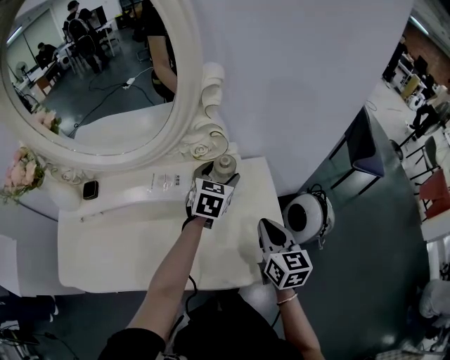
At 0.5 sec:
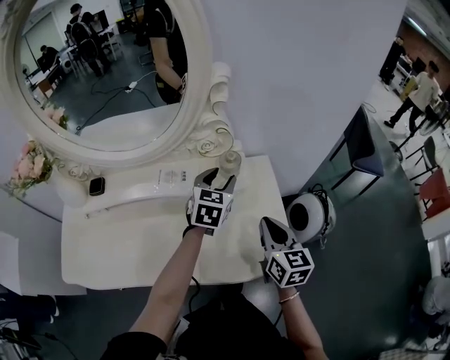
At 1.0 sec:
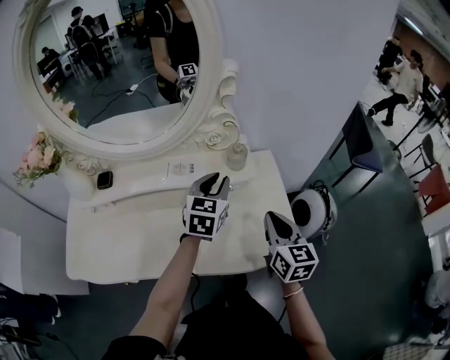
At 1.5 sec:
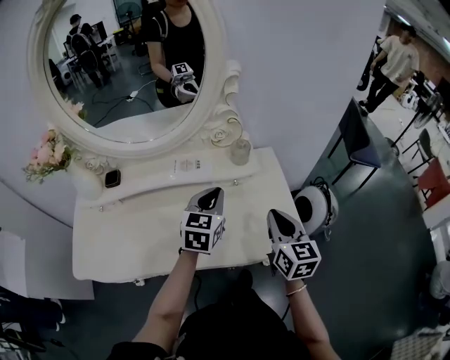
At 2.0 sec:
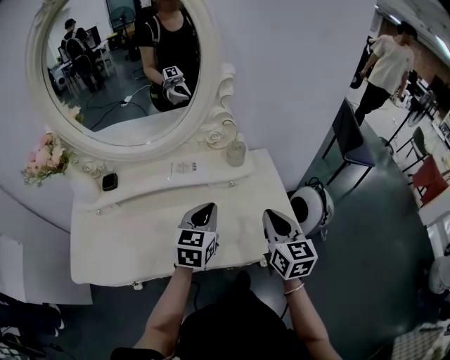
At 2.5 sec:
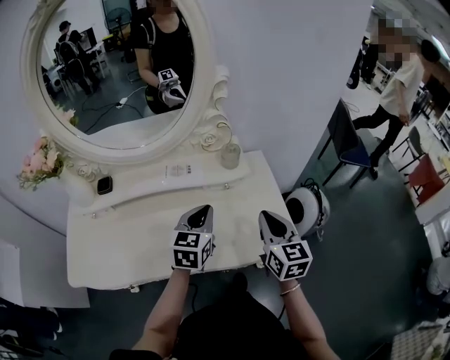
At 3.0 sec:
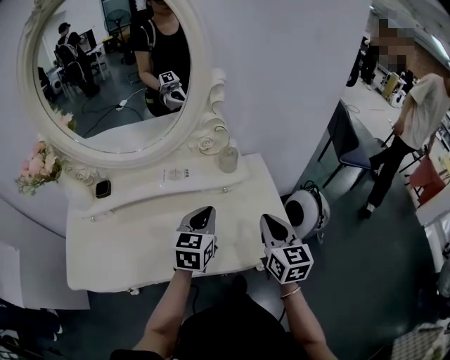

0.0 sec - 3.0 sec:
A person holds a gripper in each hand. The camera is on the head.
0.0 sec - 1.5 sec: The right gripper goes about 10 cm backward; the left gripper is displaced backward and to the left by approximately 20 cm, and closes its fingers.
1.5 sec - 3.0 sec: The grippers move only a little.

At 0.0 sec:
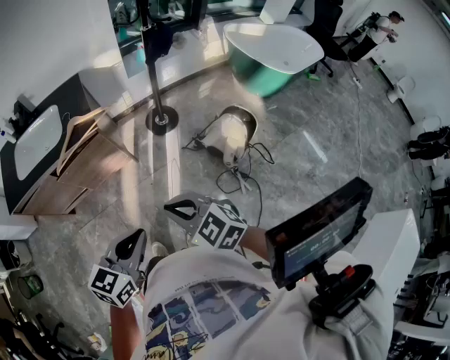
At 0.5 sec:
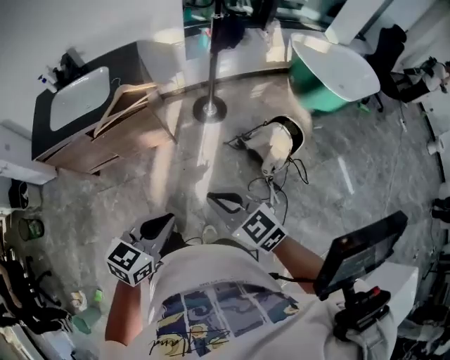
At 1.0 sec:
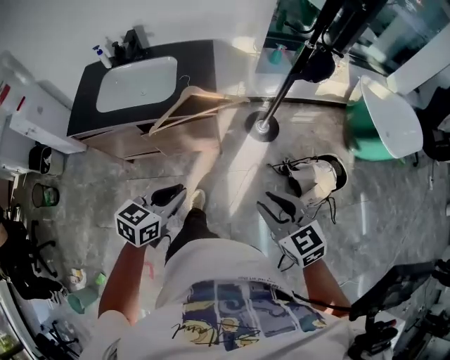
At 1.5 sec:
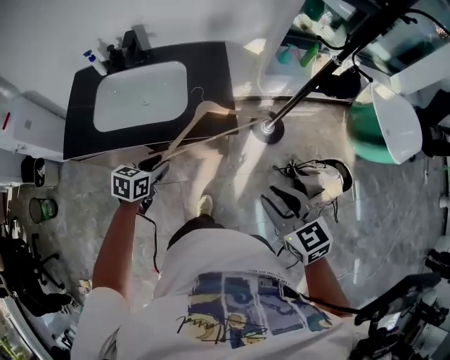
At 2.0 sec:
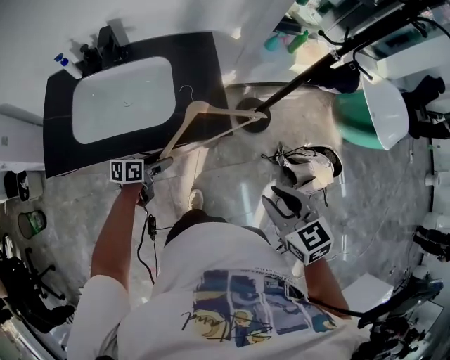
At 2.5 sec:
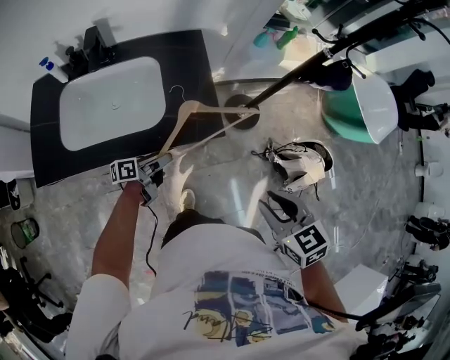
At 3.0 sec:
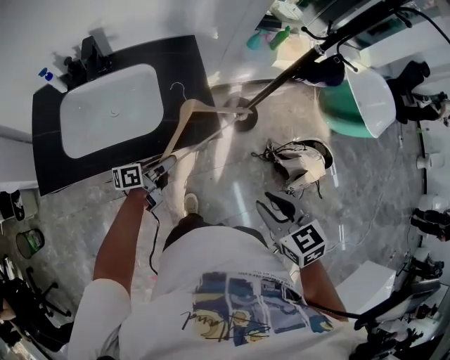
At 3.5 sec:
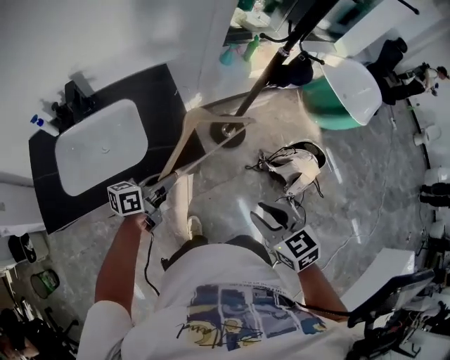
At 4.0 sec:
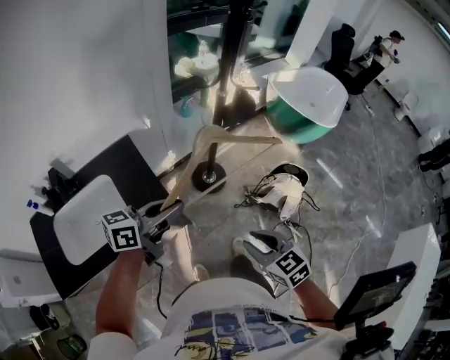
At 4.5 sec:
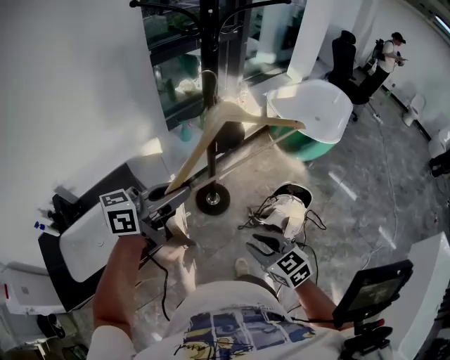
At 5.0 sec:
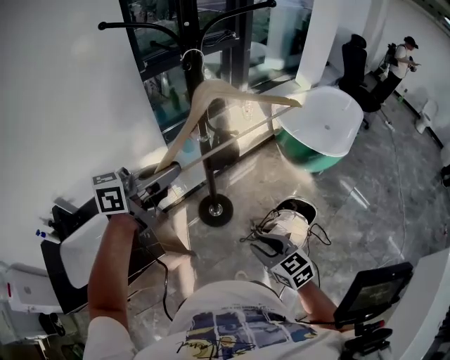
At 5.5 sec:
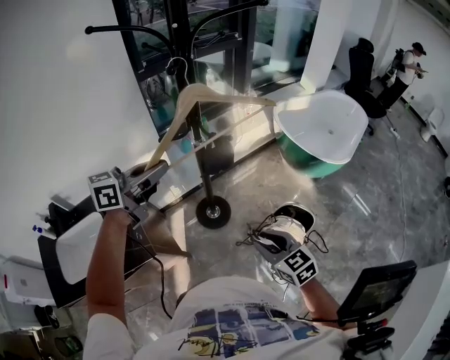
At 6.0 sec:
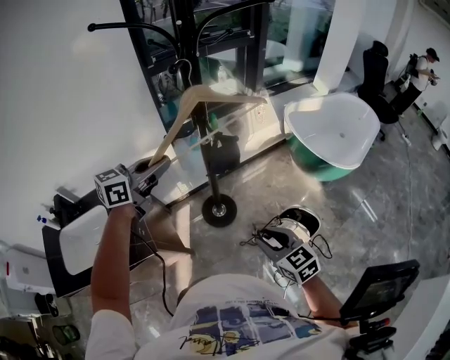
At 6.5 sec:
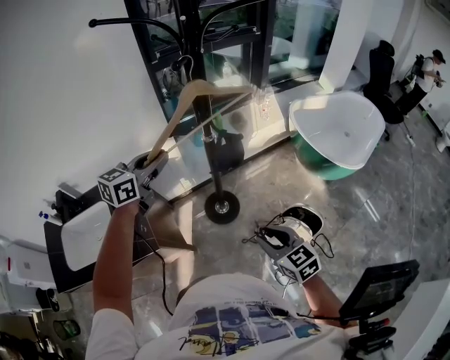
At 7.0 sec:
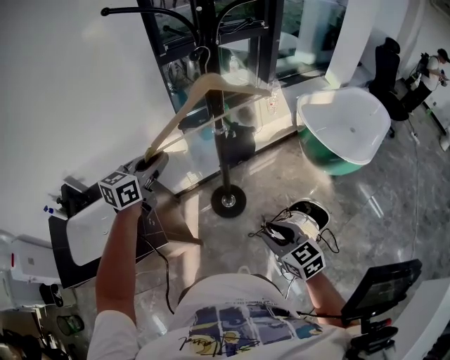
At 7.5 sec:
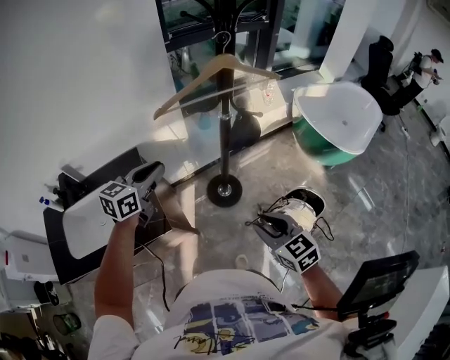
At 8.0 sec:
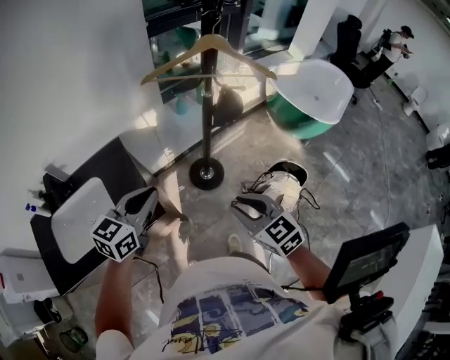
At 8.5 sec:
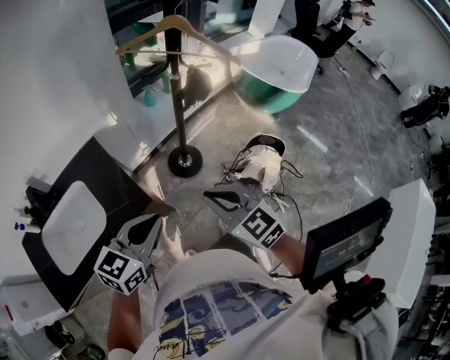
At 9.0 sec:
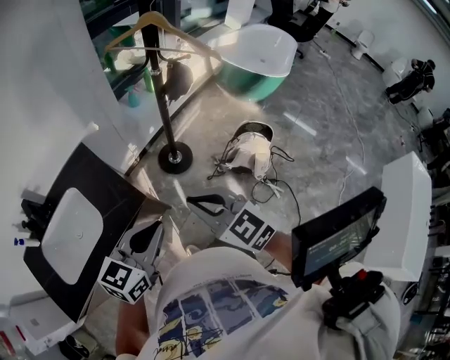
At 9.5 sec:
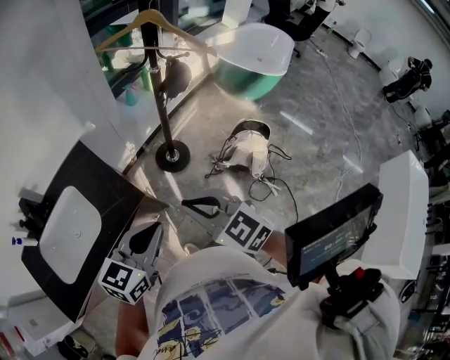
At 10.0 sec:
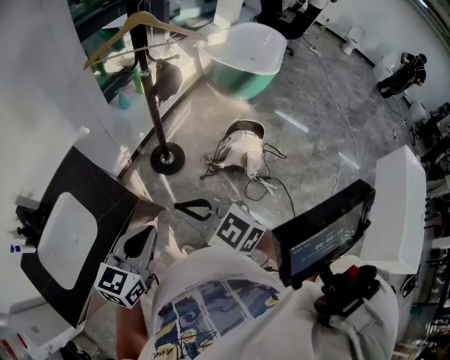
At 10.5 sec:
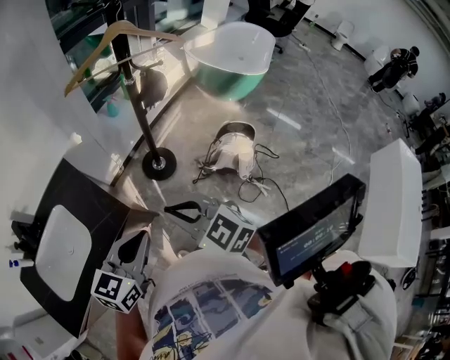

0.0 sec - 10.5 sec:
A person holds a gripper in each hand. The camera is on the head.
0.0 sec - 2.0 sec: The left gripper goes about 60 cm forward, to the left and downward, twists about 40 degrees counterclockwise, seen from behind, and opens its fingers. The right gripper goes roughly 30 cm forward and to the left, and opens up.
2.0 sec - 4.0 sec: The right gripper heads to the right, covering approximately 10 cm, and changes its angle by approximately 20 degrees. Meanwhile the left gripper travels upward and to the right by some 40 cm, changes its angle by about 50 degrees, and closes its fingers.
4.0 sec - 6.5 sec: The left gripper moves forward, some 30 cm, and rotates some 40 degrees, while the right gripper goes roughly 30 cm forward and to the right.
6.5 sec - 8.5 sec: The right gripper goes some 25 cm to the left and backward, and closes up. The left gripper travels backward by some 35 cm.
8.5 sec - 10.5 sec: The right gripper moves roughly 5 cm.

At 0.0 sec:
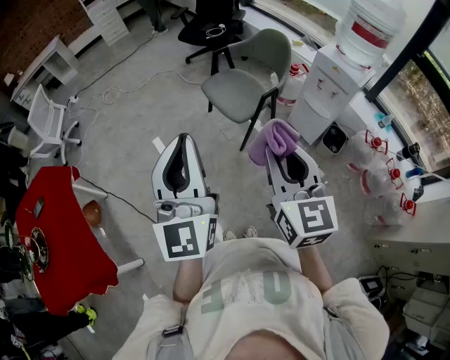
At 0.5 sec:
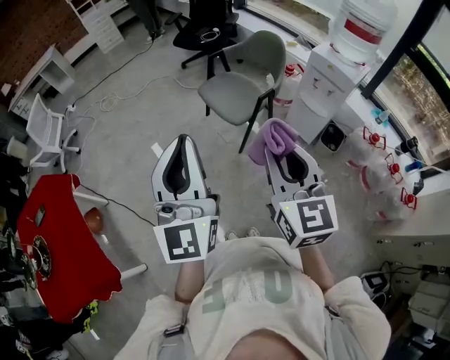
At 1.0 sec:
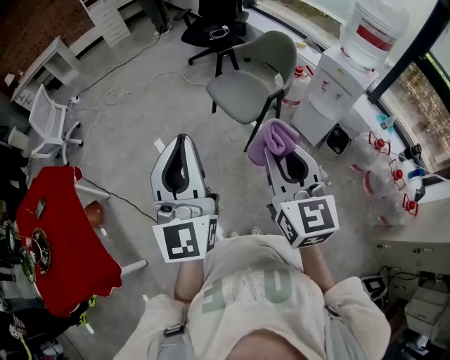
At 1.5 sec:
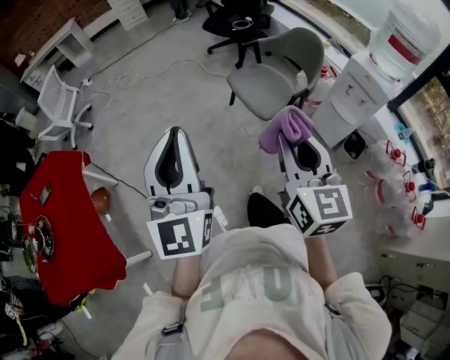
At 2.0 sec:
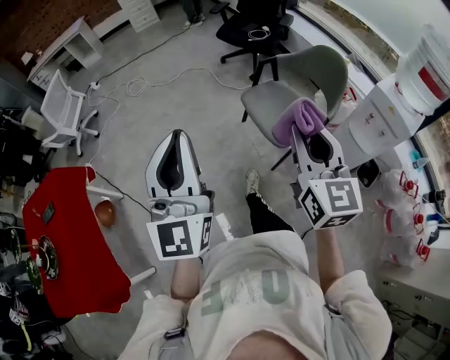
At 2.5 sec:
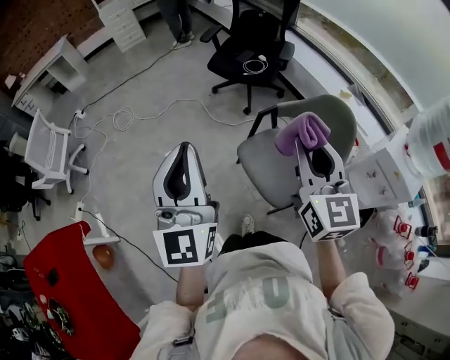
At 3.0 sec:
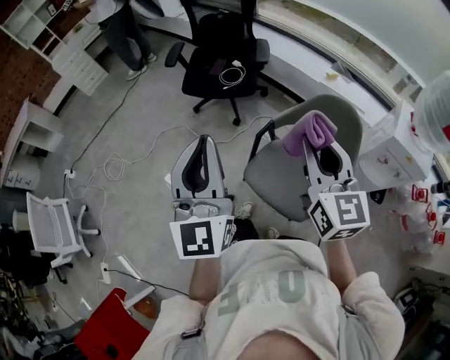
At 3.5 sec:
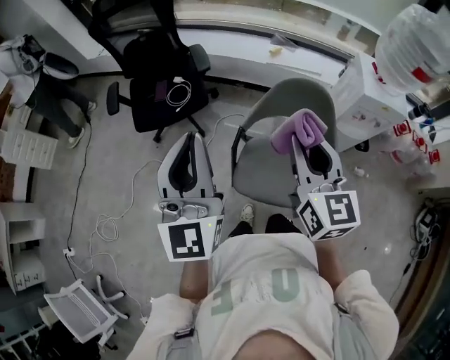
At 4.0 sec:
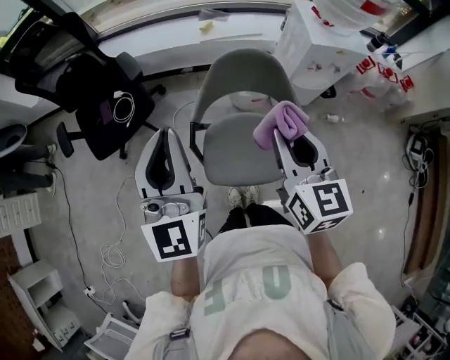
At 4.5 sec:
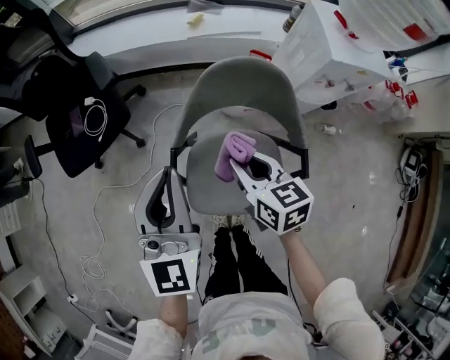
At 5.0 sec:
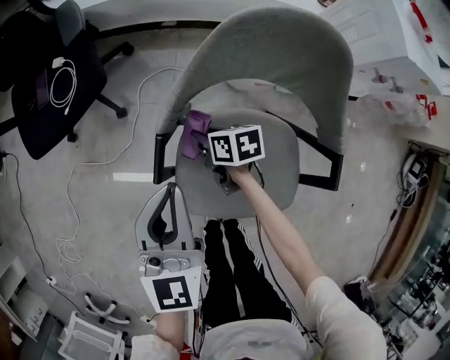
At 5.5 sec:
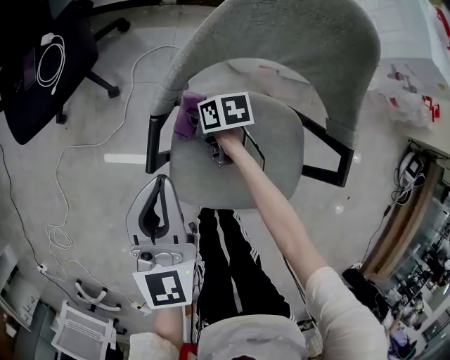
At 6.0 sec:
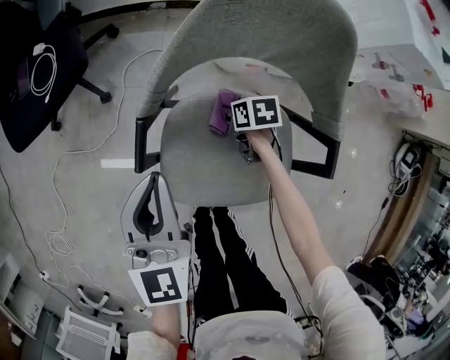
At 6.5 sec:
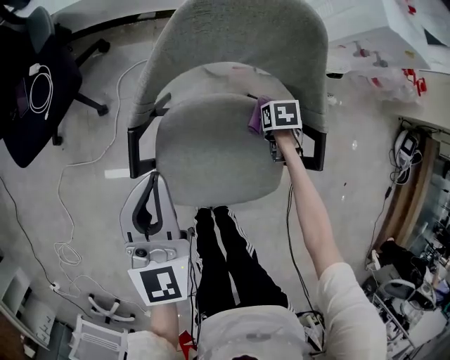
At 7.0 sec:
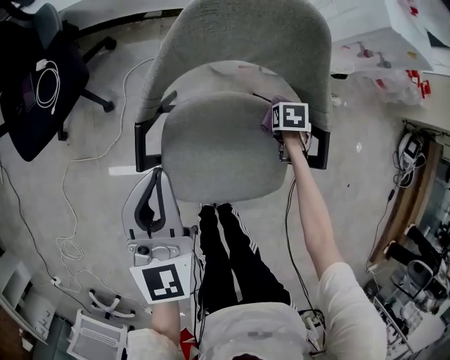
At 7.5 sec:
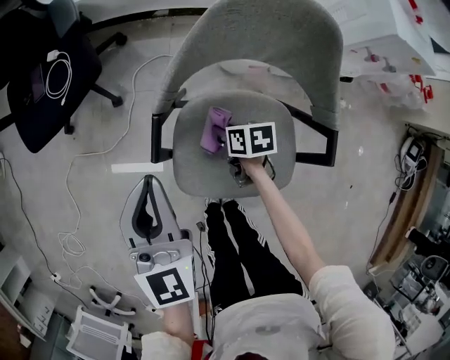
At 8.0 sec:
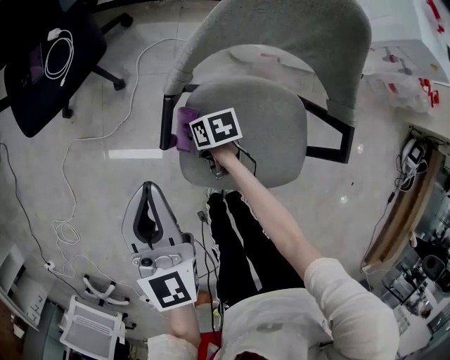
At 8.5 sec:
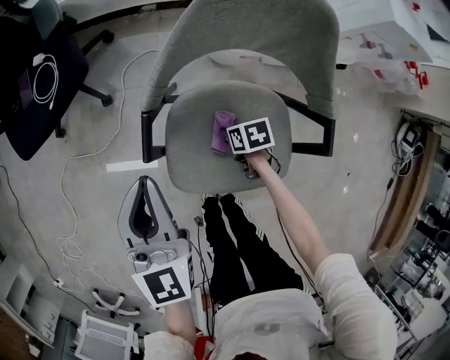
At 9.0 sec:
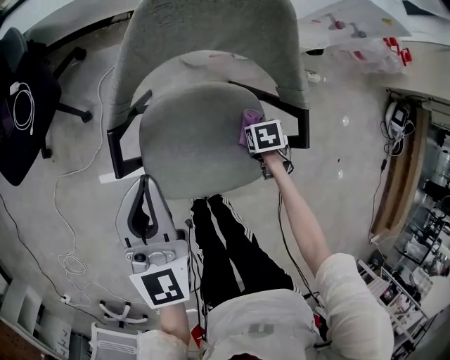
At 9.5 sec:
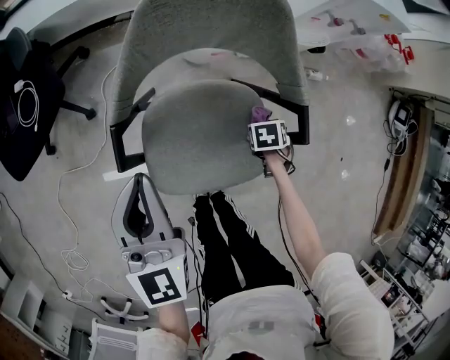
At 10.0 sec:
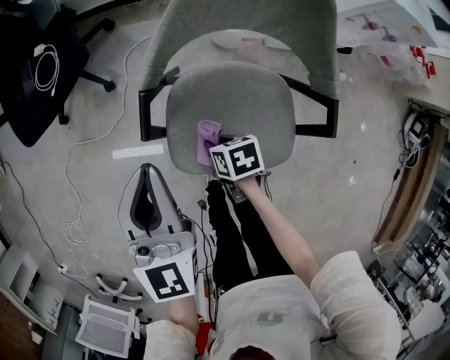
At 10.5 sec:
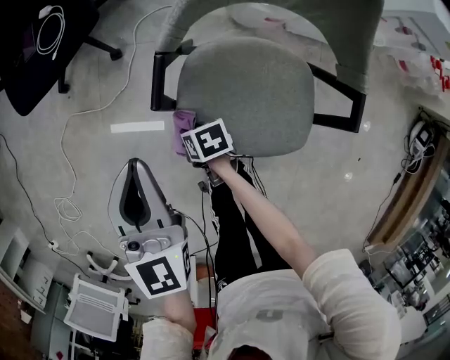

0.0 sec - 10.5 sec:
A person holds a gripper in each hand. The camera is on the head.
0.0 sec - 2.0 sec: The right gripper travels forward by some 25 cm; the left gripper shifts about 20 cm forward and to the left.
2.0 sec - 4.0 sec: The pair of grippers is taken about 50 cm. The right gripper turns by approximately 60 degrees; the left gripper swivels about 60 degrees.
4.0 sec - 6.5 sec: The right gripper moves downward, some 60 cm, and tips its fingers downward by roughly 70 degrees. The left gripper goes approximately 35 cm downward, and swivels roughly 30 degrees.
6.5 sec - 8.5 sec: The right gripper turns by about 20 degrees.
8.5 sec - 10.5 sec: The left gripper ends up some 5 cm from where it was. Meanwhile the right gripper changes place by roughly 20 cm.

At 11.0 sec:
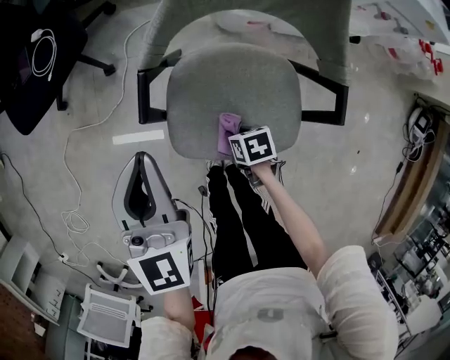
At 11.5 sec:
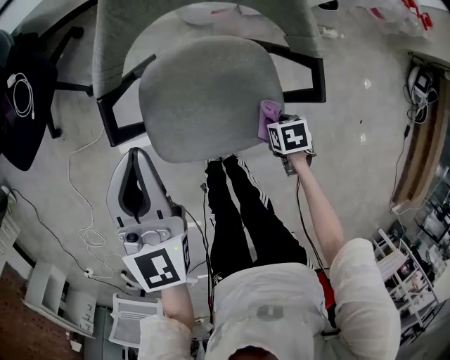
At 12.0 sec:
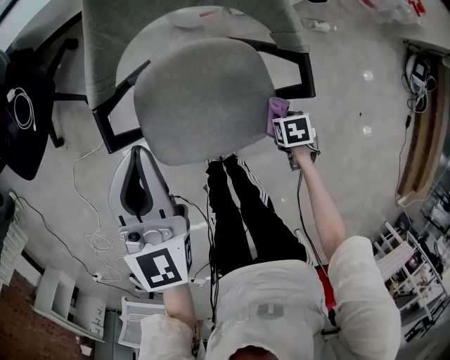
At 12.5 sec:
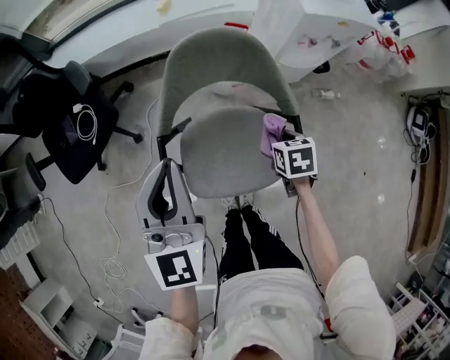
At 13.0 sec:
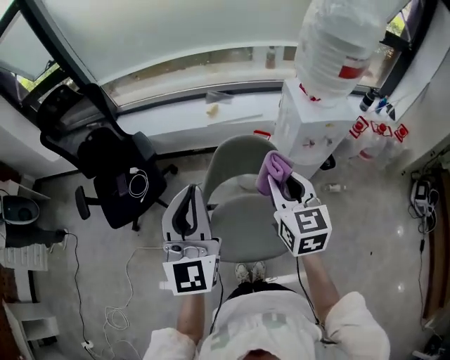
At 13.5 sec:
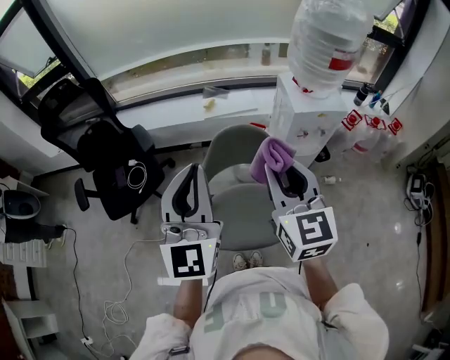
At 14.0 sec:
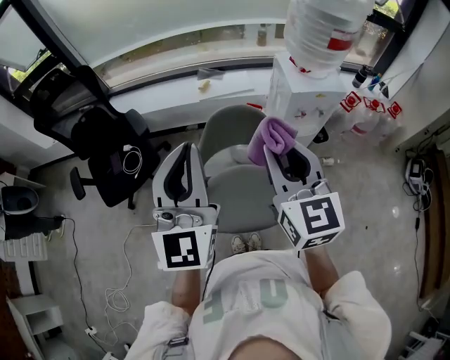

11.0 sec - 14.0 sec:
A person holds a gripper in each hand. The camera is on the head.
11.0 sec - 12.5 sec: The two grippers go some 20 cm upward. The right gripper rotates some 30 degrees.
12.5 sec - 14.0 sec: The right gripper shifts about 50 cm upward, and points its fingers about 60 degrees further upward. Meanwhile the left gripper goes some 25 cm upward, and changes its angle by about 20 degrees.
